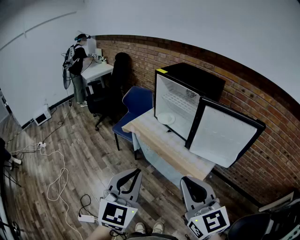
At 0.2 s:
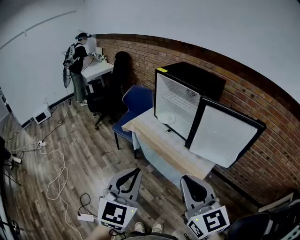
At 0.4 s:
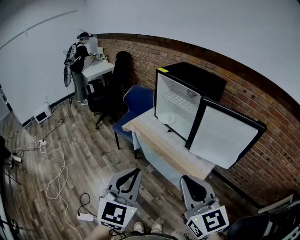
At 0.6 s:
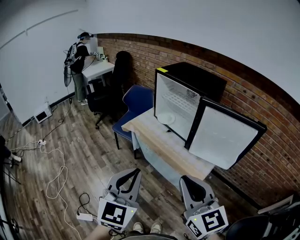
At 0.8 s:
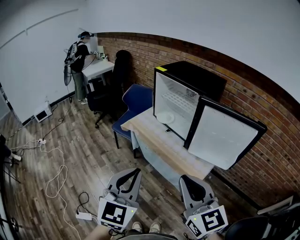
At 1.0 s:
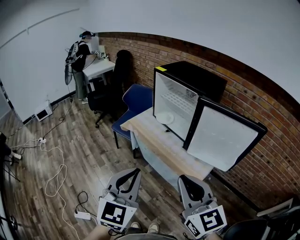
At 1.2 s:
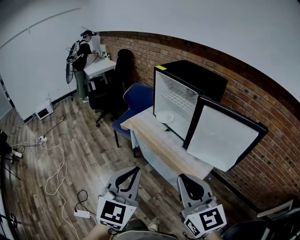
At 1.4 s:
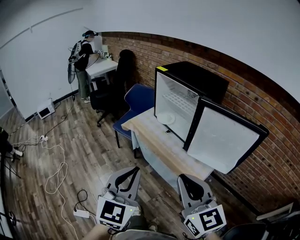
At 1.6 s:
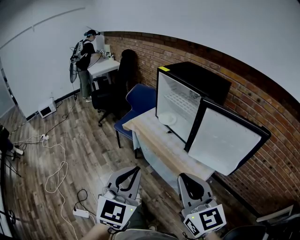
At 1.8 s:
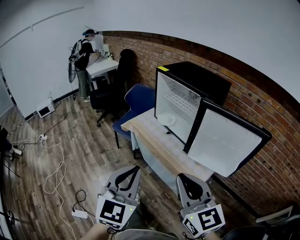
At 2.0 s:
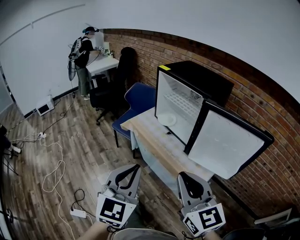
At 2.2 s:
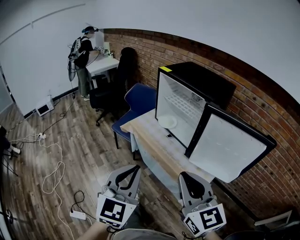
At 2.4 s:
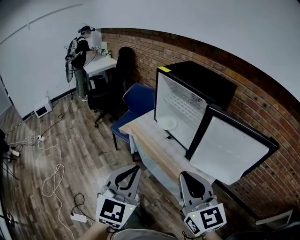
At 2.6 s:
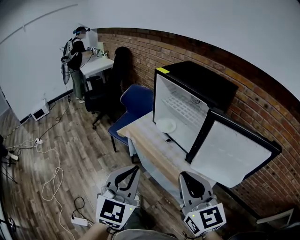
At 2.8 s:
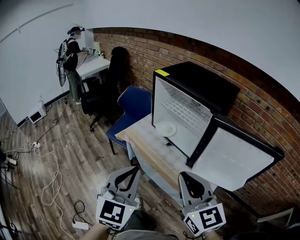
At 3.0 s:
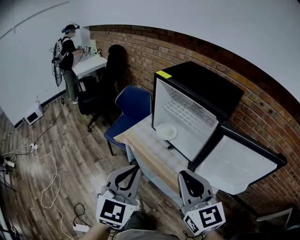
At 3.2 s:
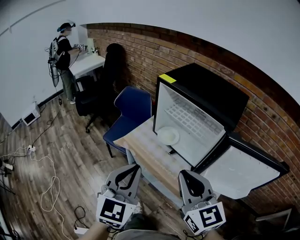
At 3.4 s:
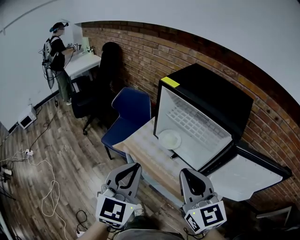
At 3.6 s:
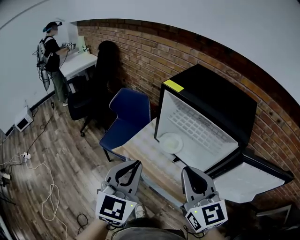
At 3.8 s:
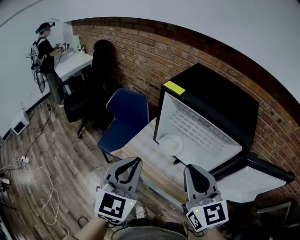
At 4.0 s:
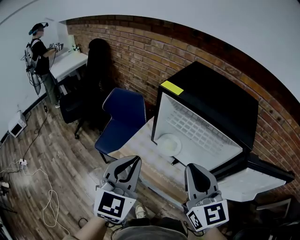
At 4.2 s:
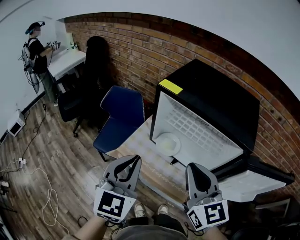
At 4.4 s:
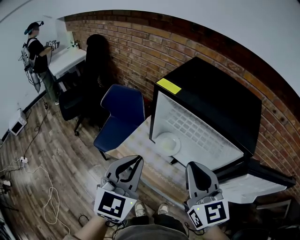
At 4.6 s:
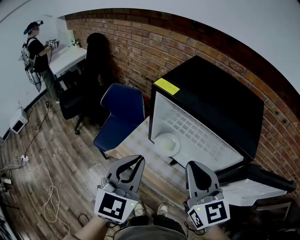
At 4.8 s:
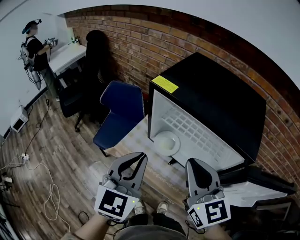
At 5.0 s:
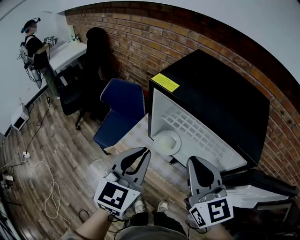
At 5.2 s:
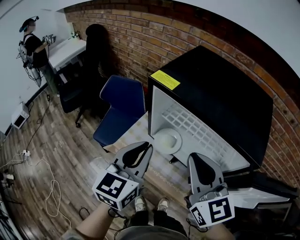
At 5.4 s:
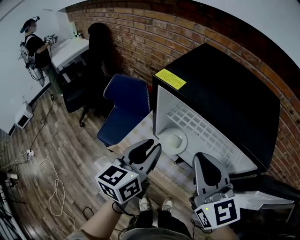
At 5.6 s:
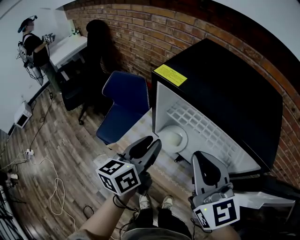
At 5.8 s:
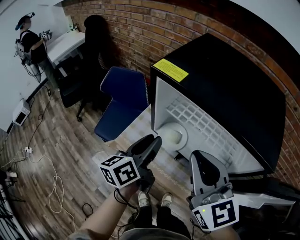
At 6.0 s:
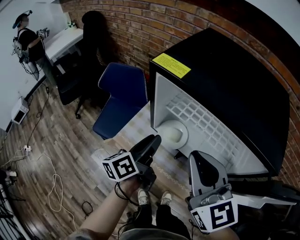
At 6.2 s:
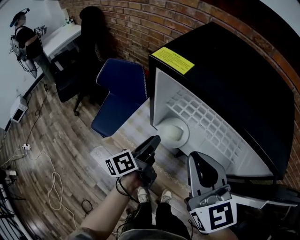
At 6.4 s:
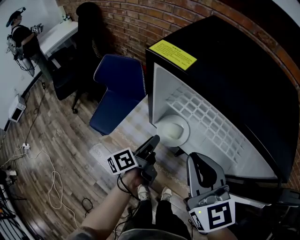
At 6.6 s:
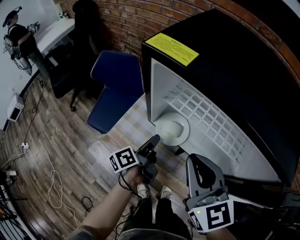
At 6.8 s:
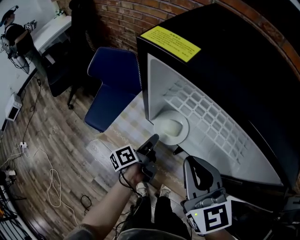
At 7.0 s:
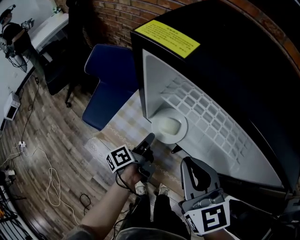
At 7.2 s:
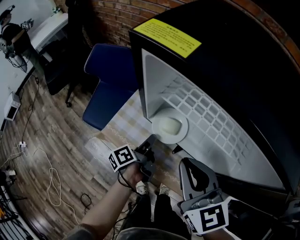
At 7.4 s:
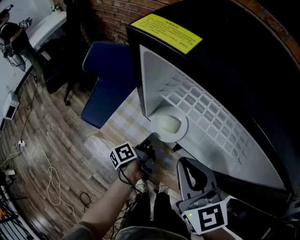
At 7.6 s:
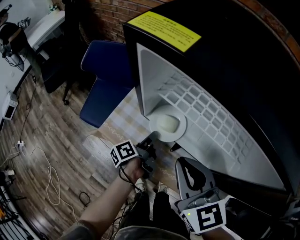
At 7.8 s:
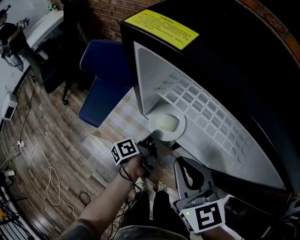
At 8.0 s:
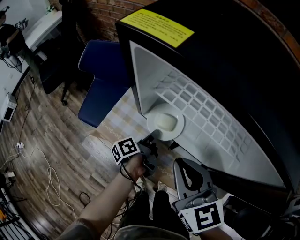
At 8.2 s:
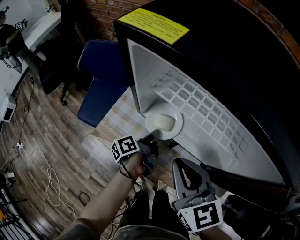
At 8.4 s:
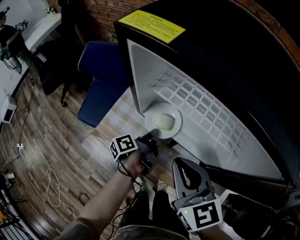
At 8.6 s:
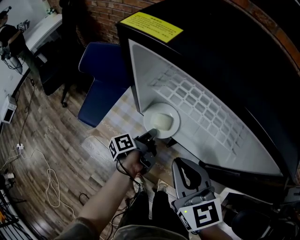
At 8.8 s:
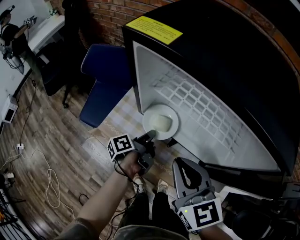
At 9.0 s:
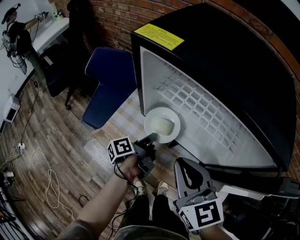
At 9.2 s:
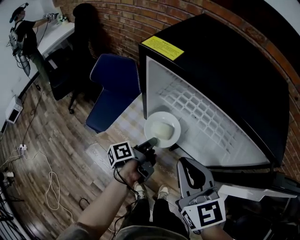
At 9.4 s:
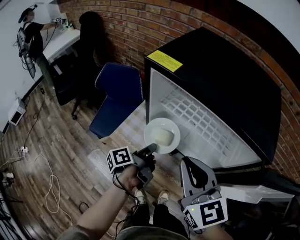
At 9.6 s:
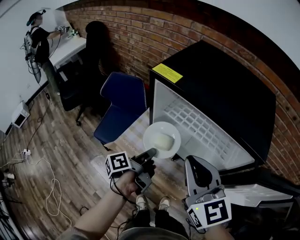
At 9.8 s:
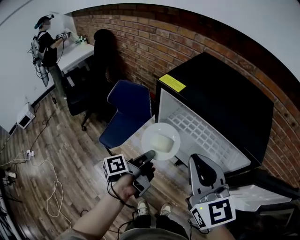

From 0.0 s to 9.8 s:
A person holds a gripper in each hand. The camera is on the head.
From 0.0 s to 1.4 s: The right gripper ends up approximately 5 cm from where it was.
From 1.4 s to 2.8 s: Both grippers travel together forward, roughly 15 cm.
From 2.8 s to 4.2 s: The grippers both shift forward by about 25 cm.
From 4.2 s to 5.6 s: The left gripper shifts approximately 15 cm forward, downward and to the right, rolls counterclockwise, seen from behind, by approximately 40 degrees, and opens; the right gripper goes some 5 cm forward.
From 5.6 s to 7.0 s: The left gripper shifts approximately 25 cm downward, and rotates around the line of its fingers by some 50 degrees, counterclockwise from behind. The right gripper shifts some 10 cm downward.
From 7.0 s to 8.4 s: The left gripper ends up roughly 5 cm from where it was, and closes its fingers.
From 8.4 s to 9.8 s: The grippers both shift upward by roughly 20 cm. The right gripper turns by roughly 20 degrees.

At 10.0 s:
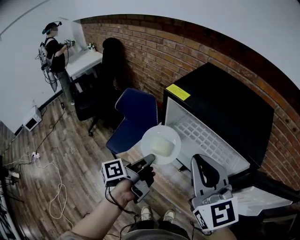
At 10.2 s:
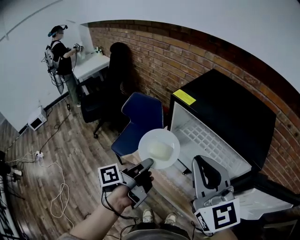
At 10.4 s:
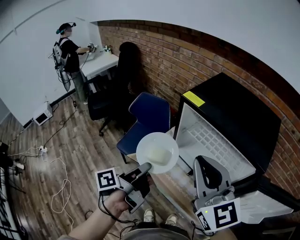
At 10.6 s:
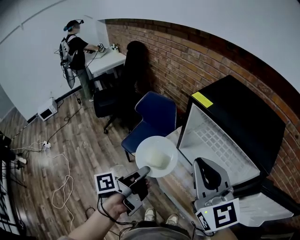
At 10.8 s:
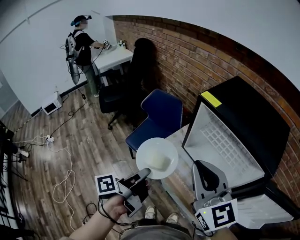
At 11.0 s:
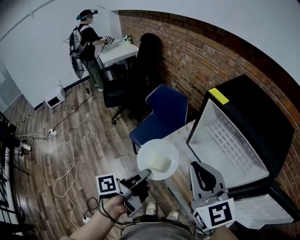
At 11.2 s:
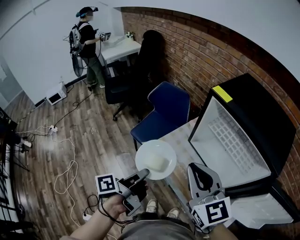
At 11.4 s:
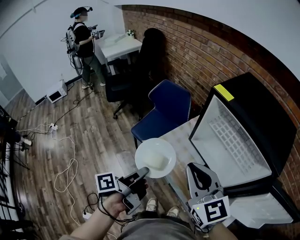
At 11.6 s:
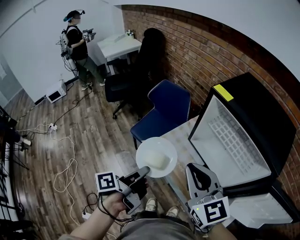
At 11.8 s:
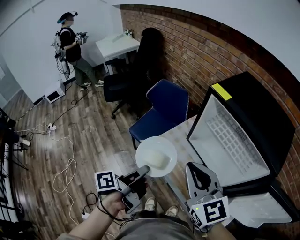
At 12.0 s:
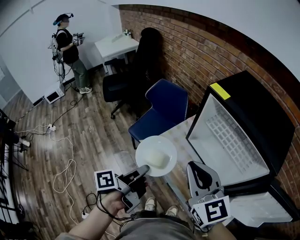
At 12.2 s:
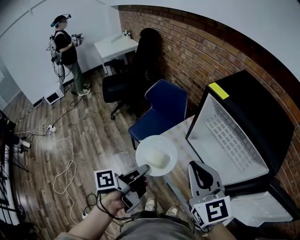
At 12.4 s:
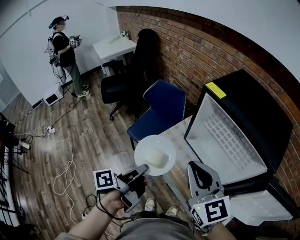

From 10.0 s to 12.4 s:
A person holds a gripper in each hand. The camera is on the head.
From 10.0 s to 11.2 s: The left gripper moves backward and to the left, roughly 20 cm, while the right gripper shifts some 10 cm to the left and downward.
From 11.2 s to 12.4 s: There are only small adjustments of the grippers.

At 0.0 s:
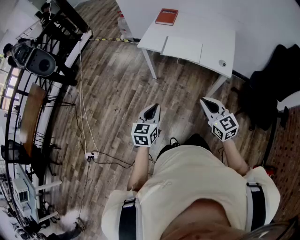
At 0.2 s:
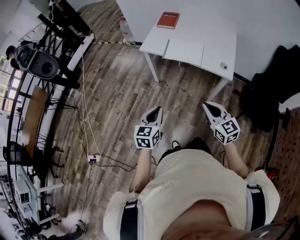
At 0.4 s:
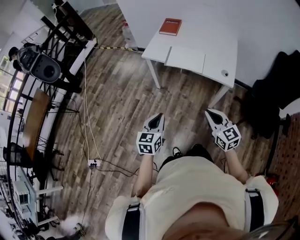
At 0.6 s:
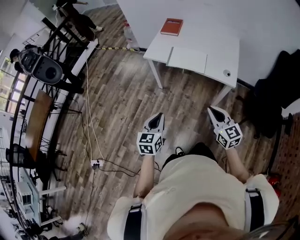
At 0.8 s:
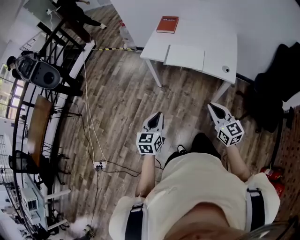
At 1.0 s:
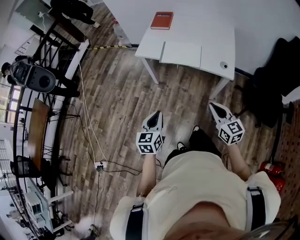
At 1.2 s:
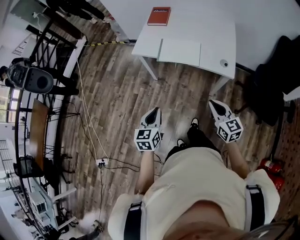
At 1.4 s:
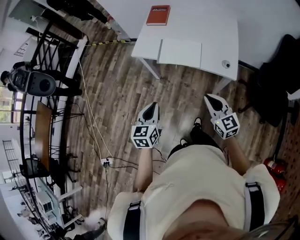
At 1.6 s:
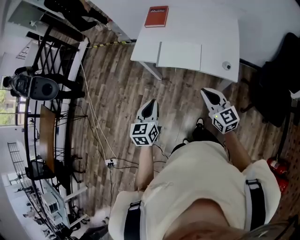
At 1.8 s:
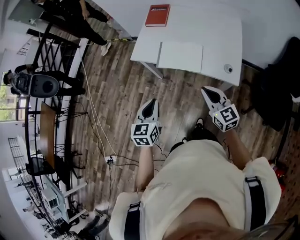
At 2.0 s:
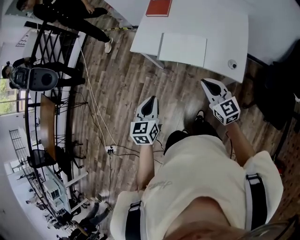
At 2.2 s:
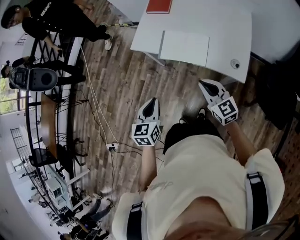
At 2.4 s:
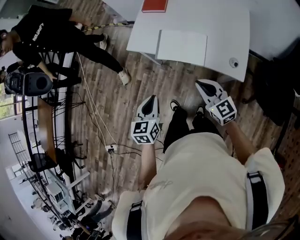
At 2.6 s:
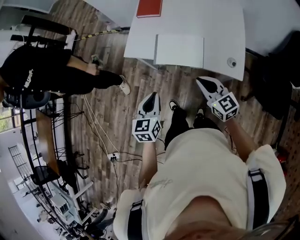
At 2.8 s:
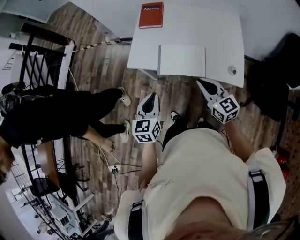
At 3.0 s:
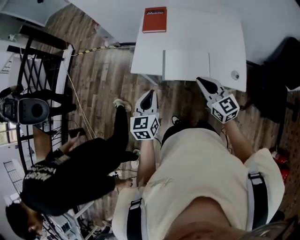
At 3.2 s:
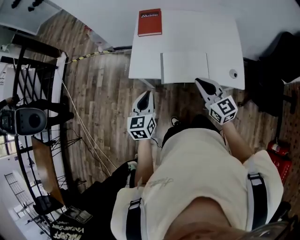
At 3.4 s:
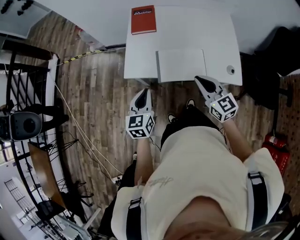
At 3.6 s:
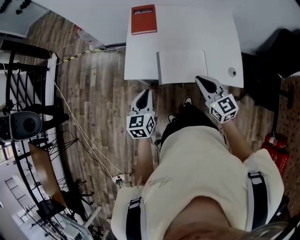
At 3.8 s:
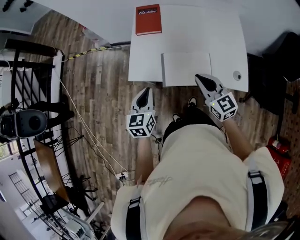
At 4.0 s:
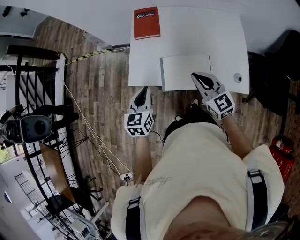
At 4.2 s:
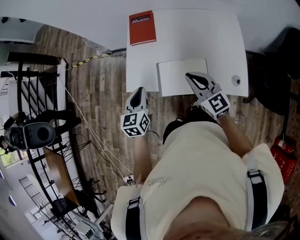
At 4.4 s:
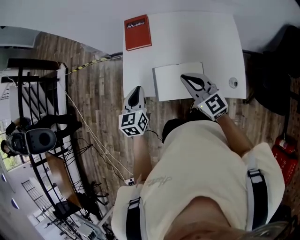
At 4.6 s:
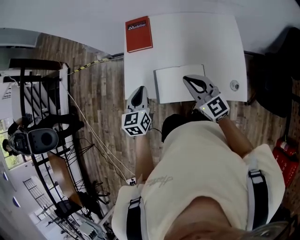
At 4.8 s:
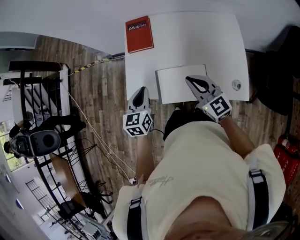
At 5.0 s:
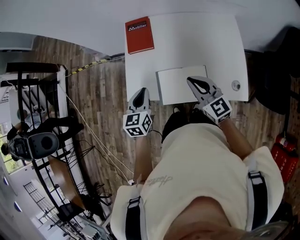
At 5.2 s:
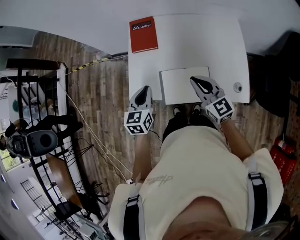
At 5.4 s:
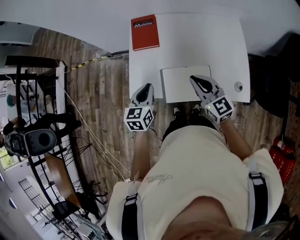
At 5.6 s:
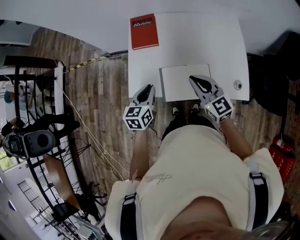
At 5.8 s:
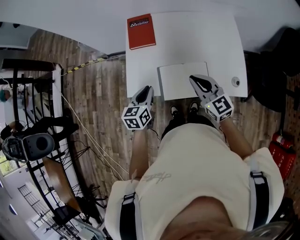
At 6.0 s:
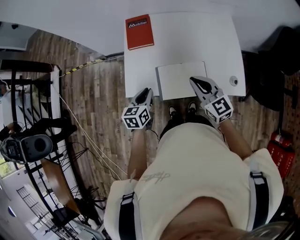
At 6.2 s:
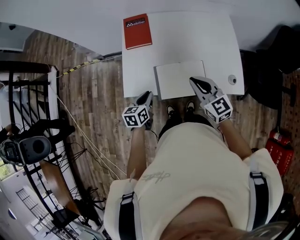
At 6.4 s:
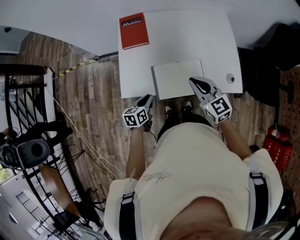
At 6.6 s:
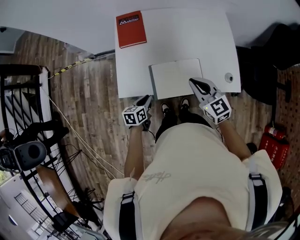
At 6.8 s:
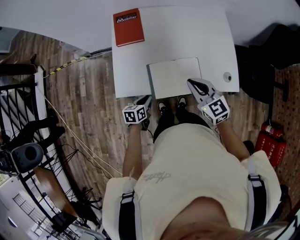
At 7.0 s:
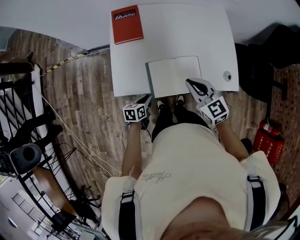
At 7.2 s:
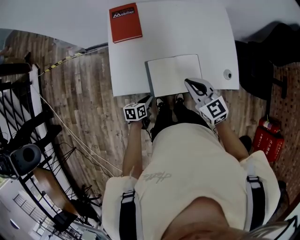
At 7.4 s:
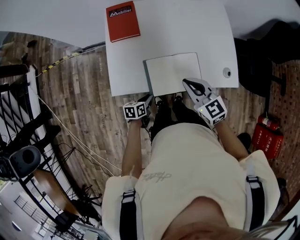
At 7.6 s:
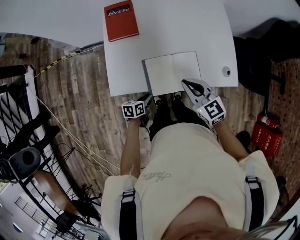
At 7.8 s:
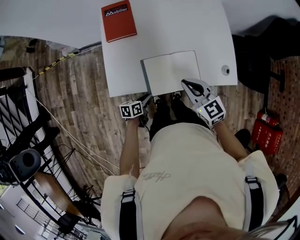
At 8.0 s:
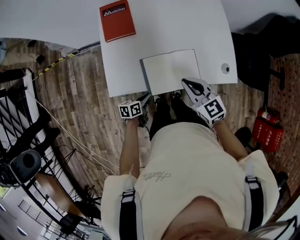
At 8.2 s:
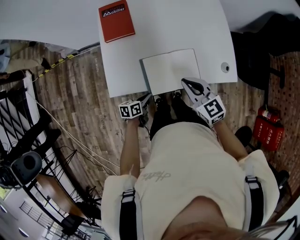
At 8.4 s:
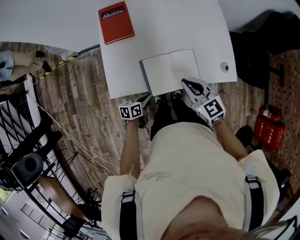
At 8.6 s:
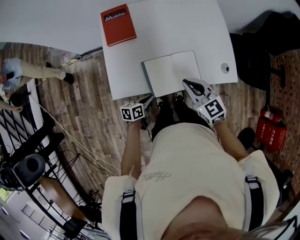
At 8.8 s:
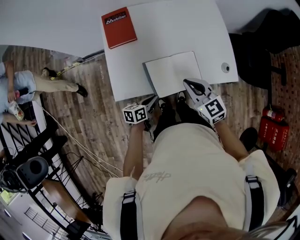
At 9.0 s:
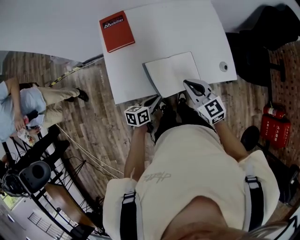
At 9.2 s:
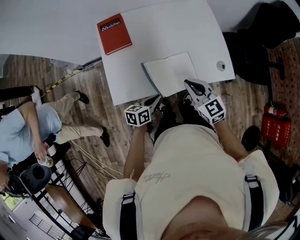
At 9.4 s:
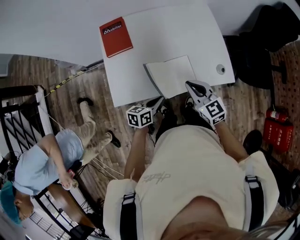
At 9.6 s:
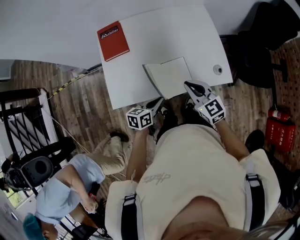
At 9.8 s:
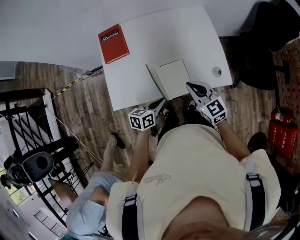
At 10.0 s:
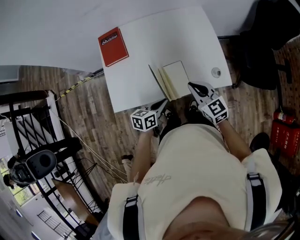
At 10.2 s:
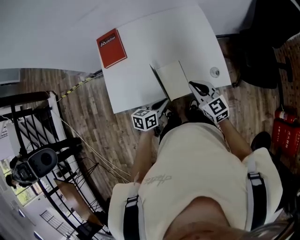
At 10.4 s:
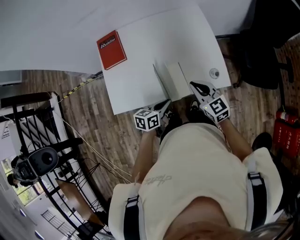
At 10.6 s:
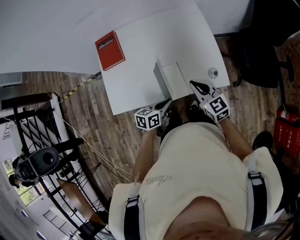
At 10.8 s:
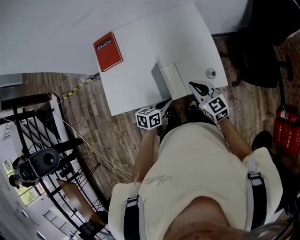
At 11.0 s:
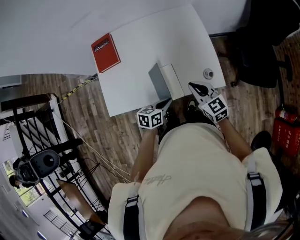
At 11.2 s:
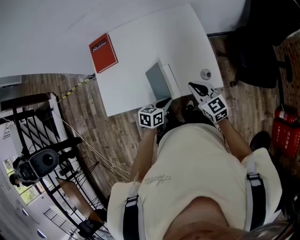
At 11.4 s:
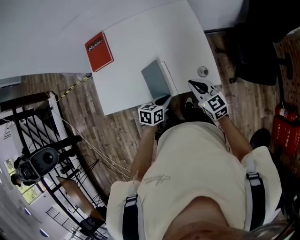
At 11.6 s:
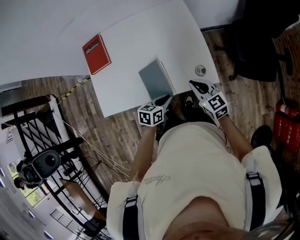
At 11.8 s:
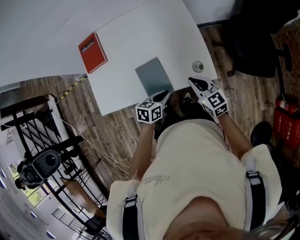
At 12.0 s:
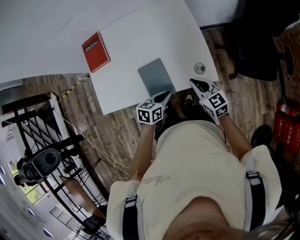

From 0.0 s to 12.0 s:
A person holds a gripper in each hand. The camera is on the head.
From 0.0 s to 1.6 s: The left gripper heads forward, covering approximately 15 cm, while the right gripper travels forward and to the right by some 20 cm.
From 1.6 s to 3.0 s: The grippers both shift forward by approximately 20 cm.
From 3.0 s to 4.4 s: The two grippers go approximately 15 cm forward.
From 4.4 s to 6.0 s: The left gripper shifts some 5 cm downward.
From 6.0 s to 7.6 s: The right gripper is displaced downward by about 5 cm; the left gripper shifts some 20 cm downward, and changes its angle by roughly 30 degrees.
From 7.6 s to 9.0 s: The left gripper goes some 10 cm upward.
From 9.0 s to 10.4 s: The right gripper moves to the right, some 15 cm; the left gripper is displaced to the right and upward by roughly 15 cm.
From 10.4 s to 12.0 s: The left gripper moves to the right, some 10 cm. The right gripper goes approximately 10 cm to the right and downward.
